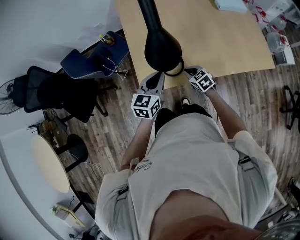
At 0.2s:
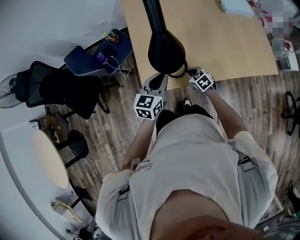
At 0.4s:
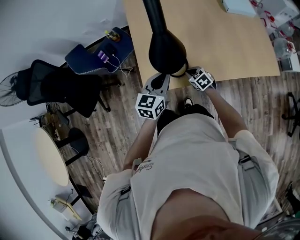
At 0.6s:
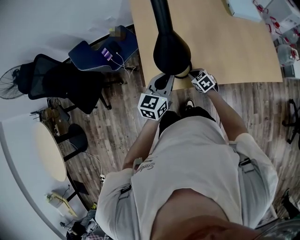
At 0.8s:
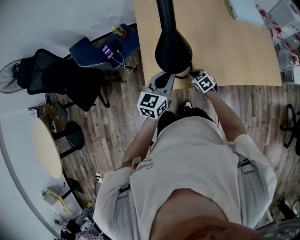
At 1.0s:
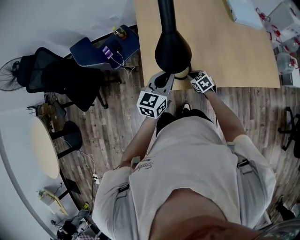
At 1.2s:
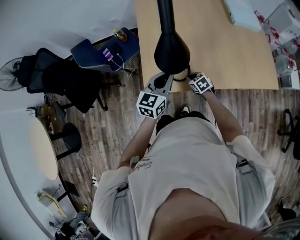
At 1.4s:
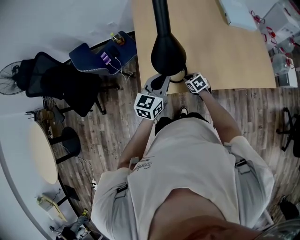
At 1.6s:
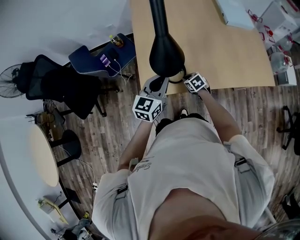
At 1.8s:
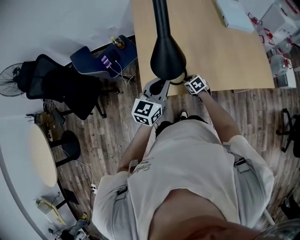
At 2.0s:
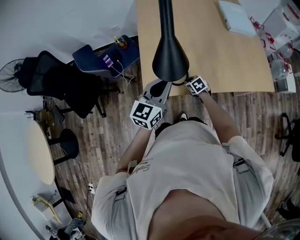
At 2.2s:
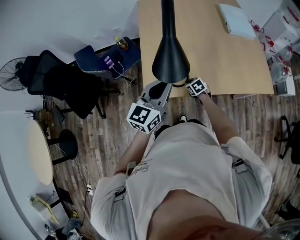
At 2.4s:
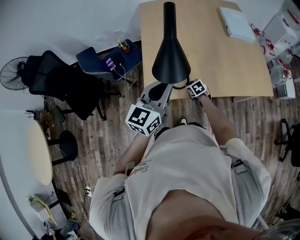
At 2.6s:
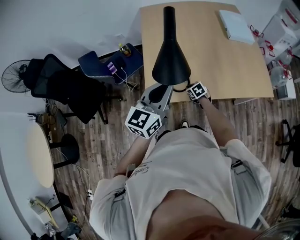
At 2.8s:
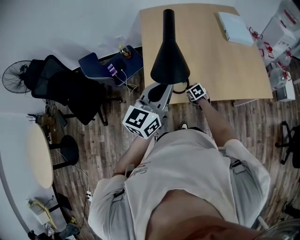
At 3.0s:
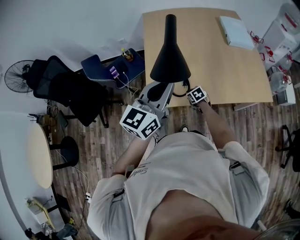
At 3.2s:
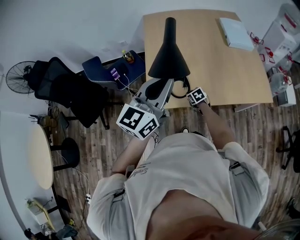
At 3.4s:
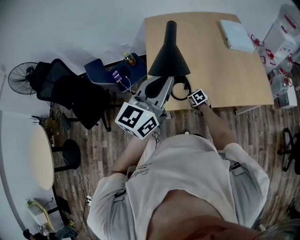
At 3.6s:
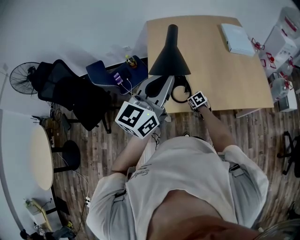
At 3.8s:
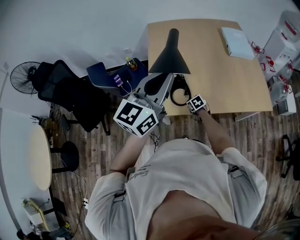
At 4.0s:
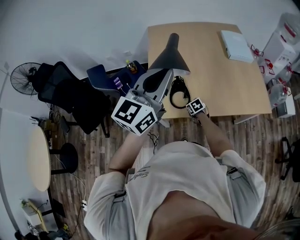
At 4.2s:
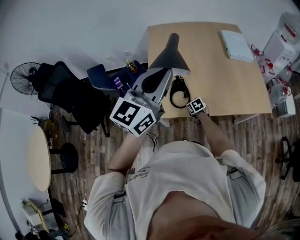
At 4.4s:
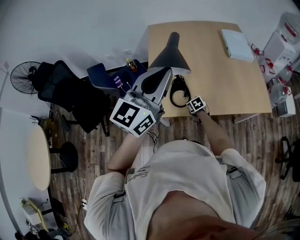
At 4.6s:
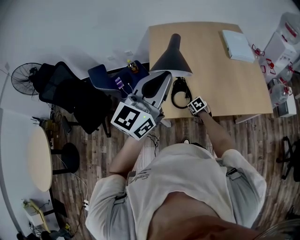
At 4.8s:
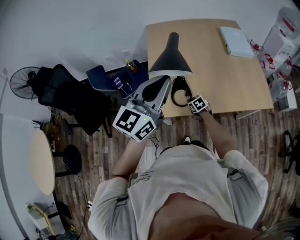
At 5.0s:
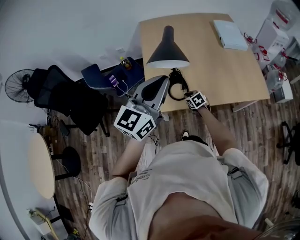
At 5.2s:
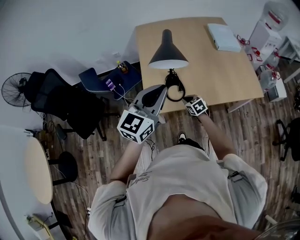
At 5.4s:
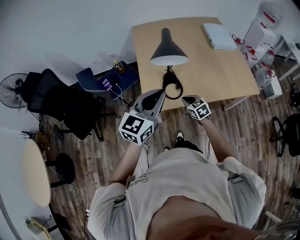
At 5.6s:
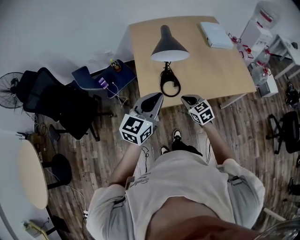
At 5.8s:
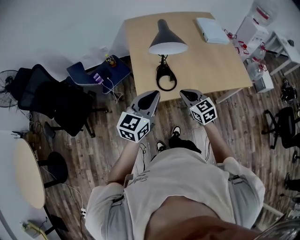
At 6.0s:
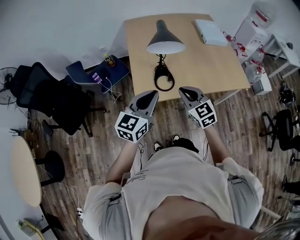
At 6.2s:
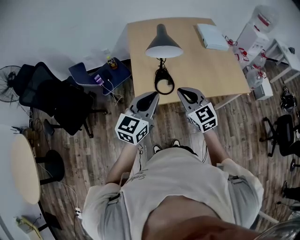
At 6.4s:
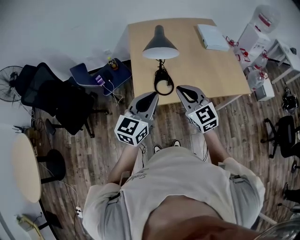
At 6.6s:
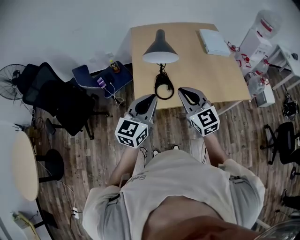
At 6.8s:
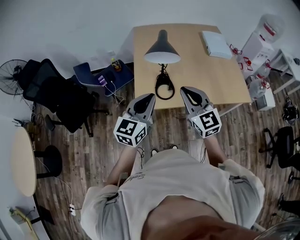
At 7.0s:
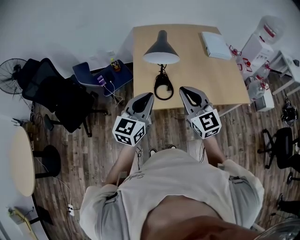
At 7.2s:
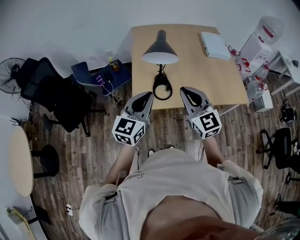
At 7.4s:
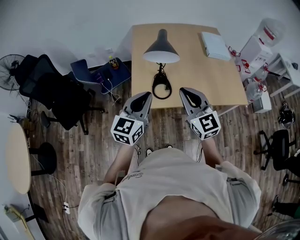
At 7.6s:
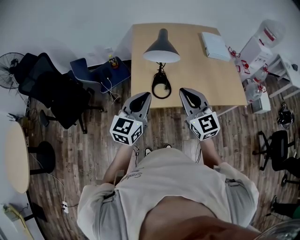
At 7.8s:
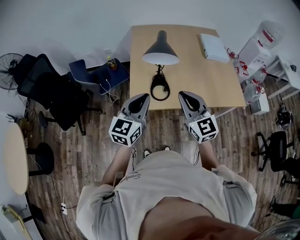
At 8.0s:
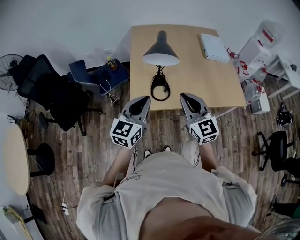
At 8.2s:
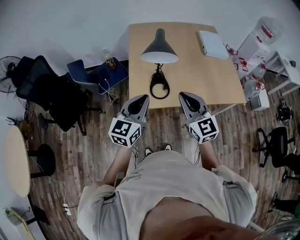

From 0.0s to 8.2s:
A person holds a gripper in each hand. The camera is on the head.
From 0.0s to 1.6s: The grippers make only small movements.
From 1.6s to 3.2s: The left gripper is displaced upward by roughly 20 cm.
From 3.2s to 5.0s: The right gripper is displaced upward by approximately 5 cm.
From 5.0s to 6.6s: The right gripper is displaced upward and backward by approximately 40 cm, and tips its fingers upward by about 40 degrees; the left gripper heads backward and downward, covering roughly 10 cm.
From 6.6s to 8.2s: There are only small adjustments of the grippers.

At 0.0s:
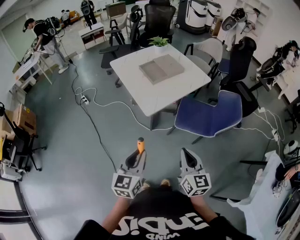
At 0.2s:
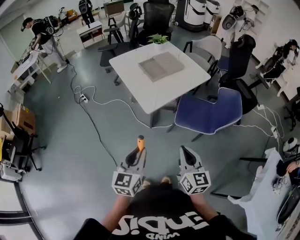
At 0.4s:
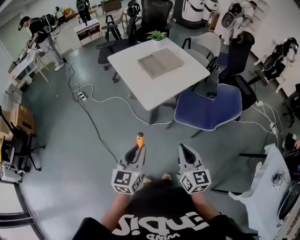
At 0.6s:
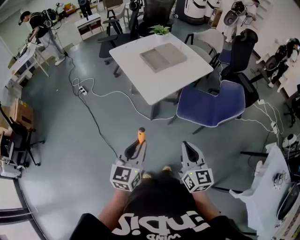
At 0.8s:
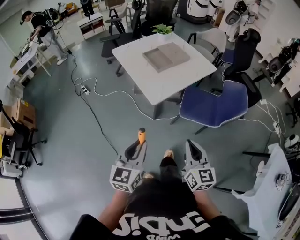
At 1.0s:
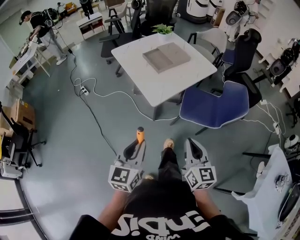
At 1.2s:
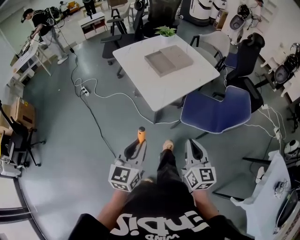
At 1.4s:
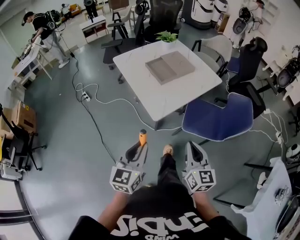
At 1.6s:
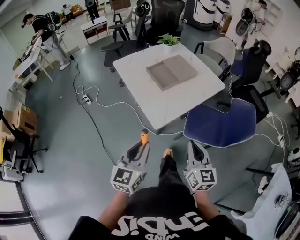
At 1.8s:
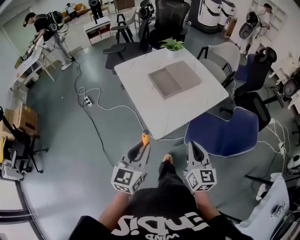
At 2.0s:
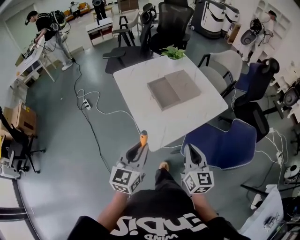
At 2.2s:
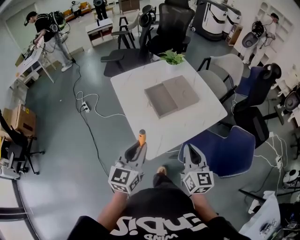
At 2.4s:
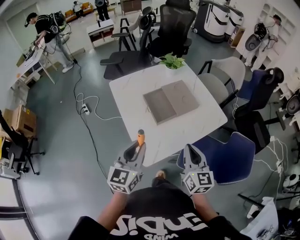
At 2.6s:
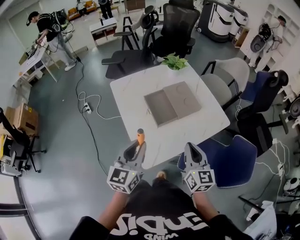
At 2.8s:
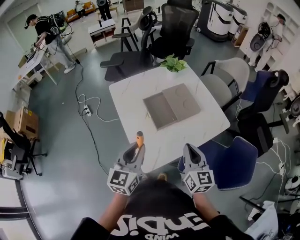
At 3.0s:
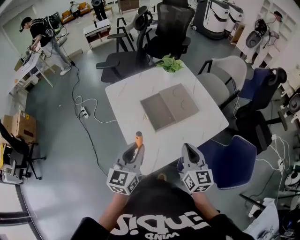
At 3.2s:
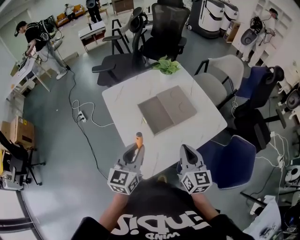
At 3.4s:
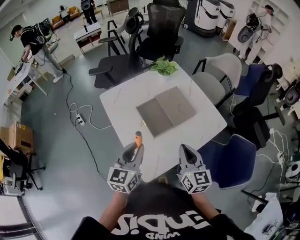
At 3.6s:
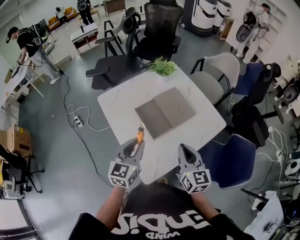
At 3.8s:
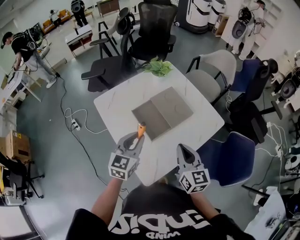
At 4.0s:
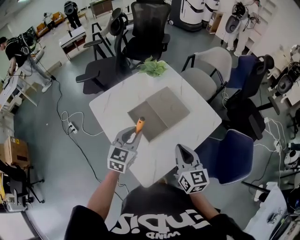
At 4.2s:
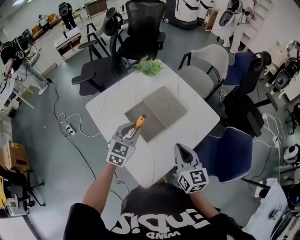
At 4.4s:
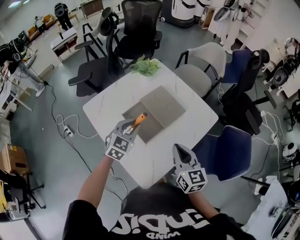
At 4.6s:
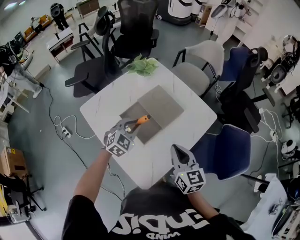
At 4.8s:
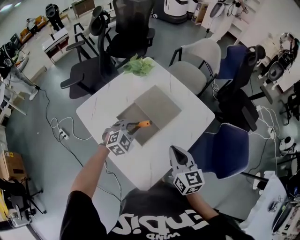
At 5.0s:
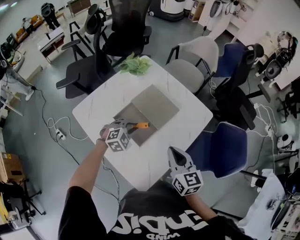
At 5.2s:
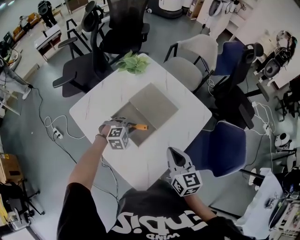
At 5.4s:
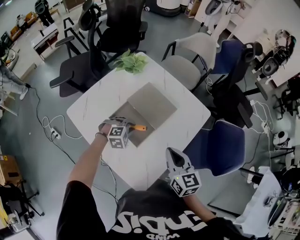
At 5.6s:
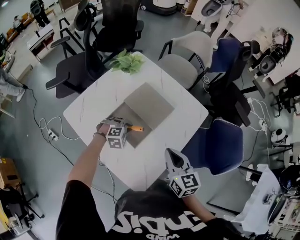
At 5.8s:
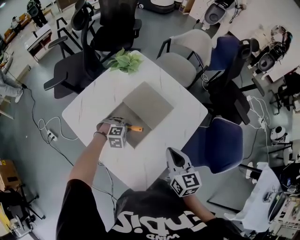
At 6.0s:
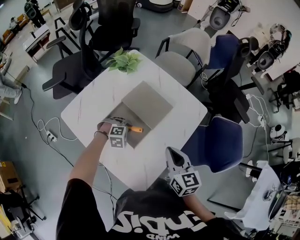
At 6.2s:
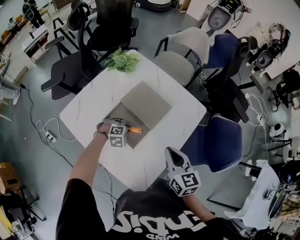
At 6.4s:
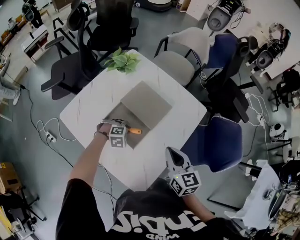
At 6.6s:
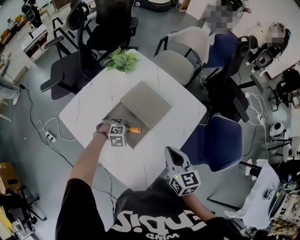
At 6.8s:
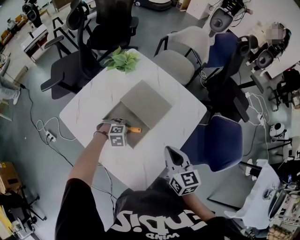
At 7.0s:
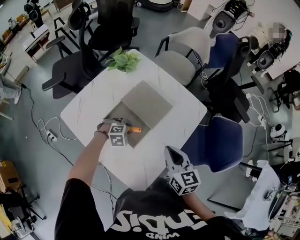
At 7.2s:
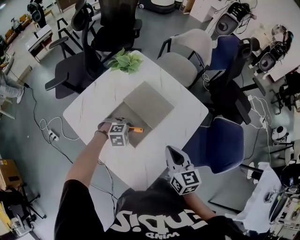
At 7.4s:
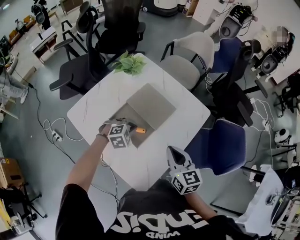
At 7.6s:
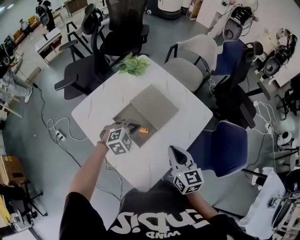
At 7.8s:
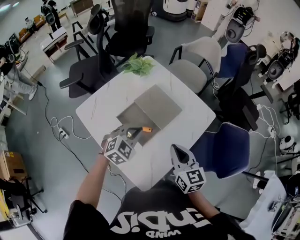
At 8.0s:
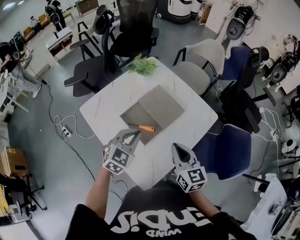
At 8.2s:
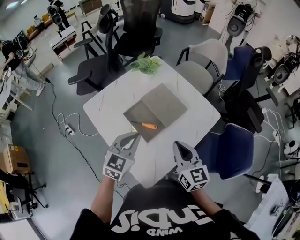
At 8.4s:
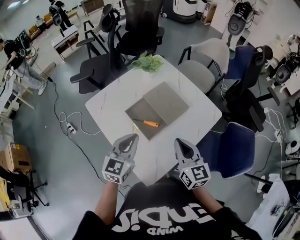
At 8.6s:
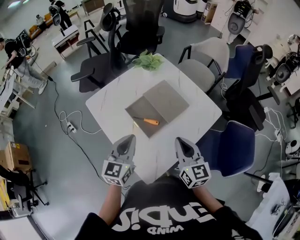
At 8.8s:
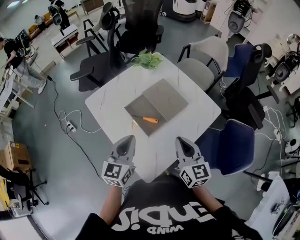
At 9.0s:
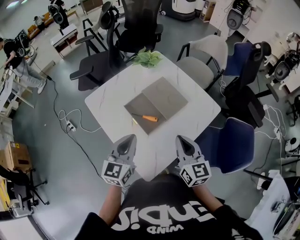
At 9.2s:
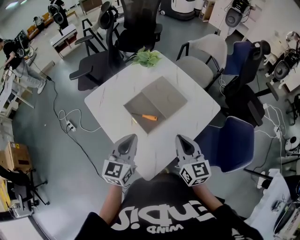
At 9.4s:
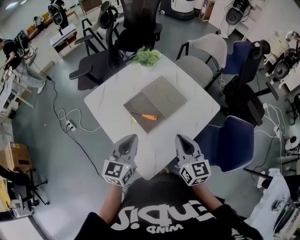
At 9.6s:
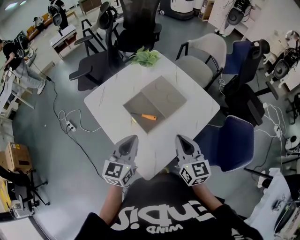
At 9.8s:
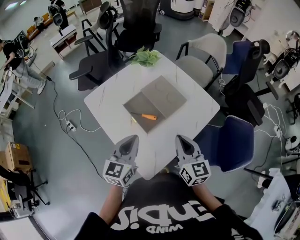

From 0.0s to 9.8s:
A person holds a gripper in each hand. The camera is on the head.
From 0.0s to 1.4s: The grippers both shift forward by about 10 cm.
From 1.4s to 2.8s: The grippers both shift forward by approximately 35 cm.
From 2.8s to 4.2s: The right gripper is displaced forward by roughly 5 cm. Meanwhile the left gripper moves forward, roughly 20 cm, and changes its angle by roughly 30 degrees.
From 4.2s to 5.6s: The left gripper travels downward by approximately 20 cm, and points its fingers roughly 40 degrees further downward.
From 5.6s to 7.0s: There are only small adjustments of the grippers.
From 7.0s to 8.4s: The right gripper is displaced upward by approximately 5 cm; the left gripper shifts some 25 cm upward and backward, tilts its fingers roughly 50 degrees upward, and closes.
From 8.4s to 9.8s: The grippers make only small movements.

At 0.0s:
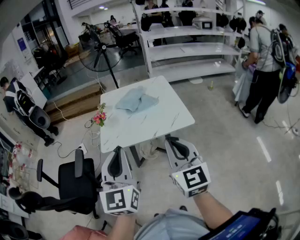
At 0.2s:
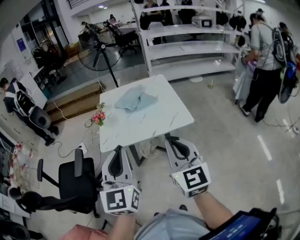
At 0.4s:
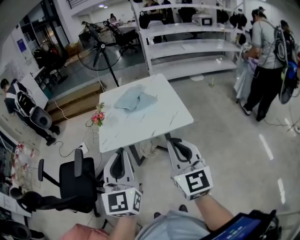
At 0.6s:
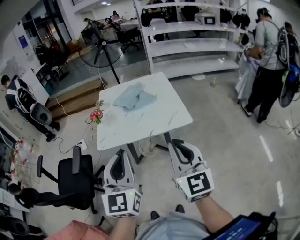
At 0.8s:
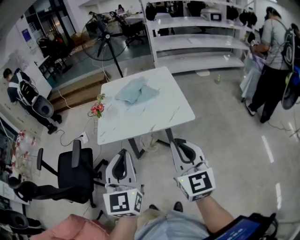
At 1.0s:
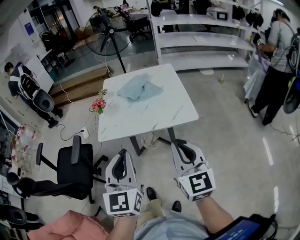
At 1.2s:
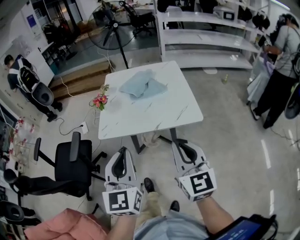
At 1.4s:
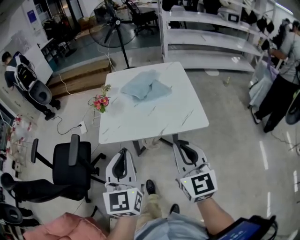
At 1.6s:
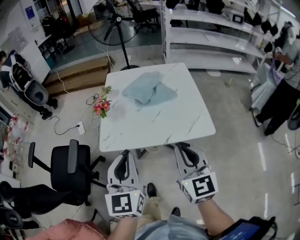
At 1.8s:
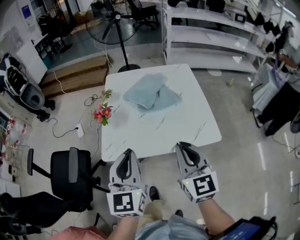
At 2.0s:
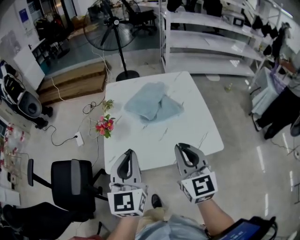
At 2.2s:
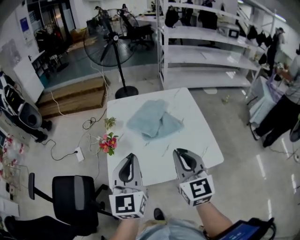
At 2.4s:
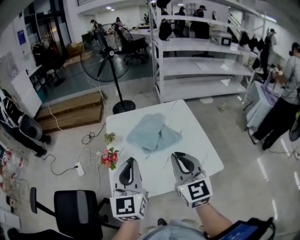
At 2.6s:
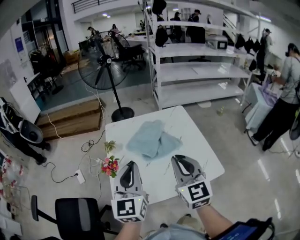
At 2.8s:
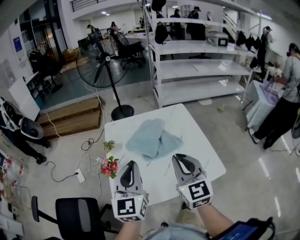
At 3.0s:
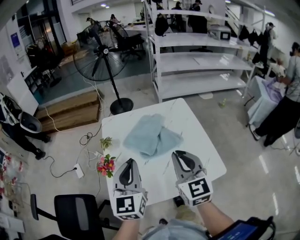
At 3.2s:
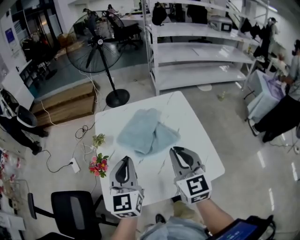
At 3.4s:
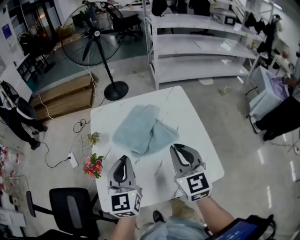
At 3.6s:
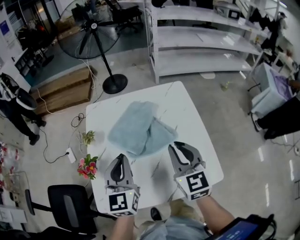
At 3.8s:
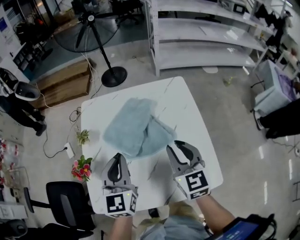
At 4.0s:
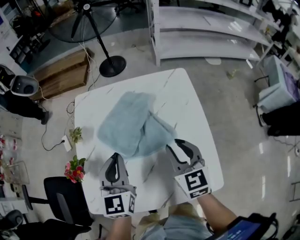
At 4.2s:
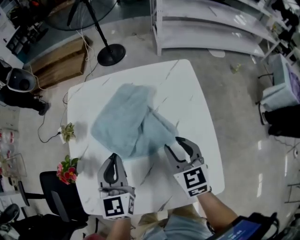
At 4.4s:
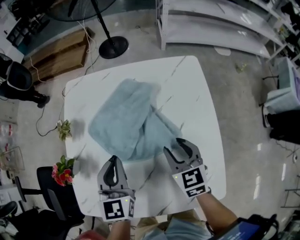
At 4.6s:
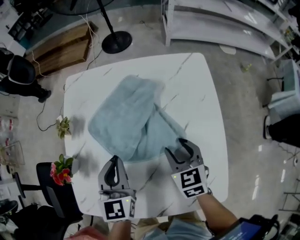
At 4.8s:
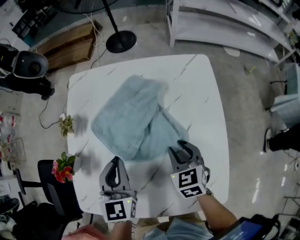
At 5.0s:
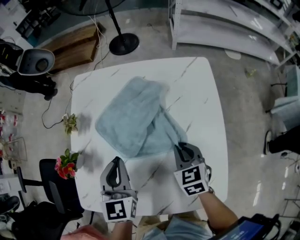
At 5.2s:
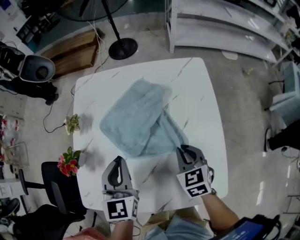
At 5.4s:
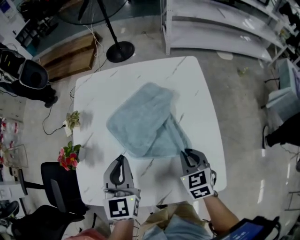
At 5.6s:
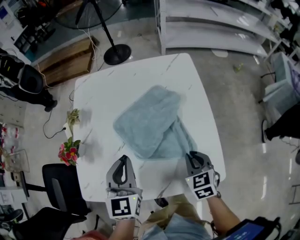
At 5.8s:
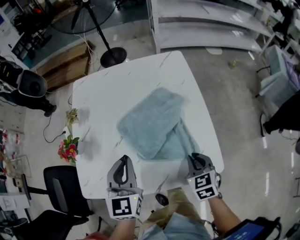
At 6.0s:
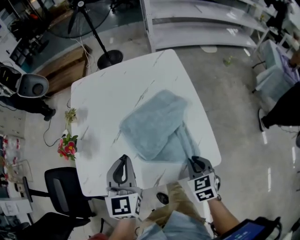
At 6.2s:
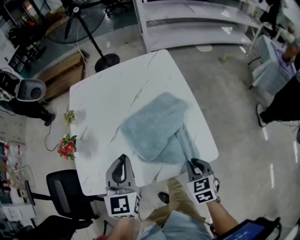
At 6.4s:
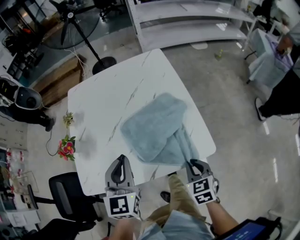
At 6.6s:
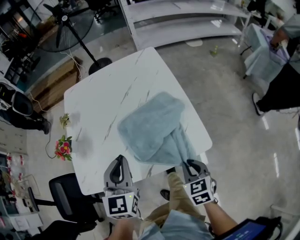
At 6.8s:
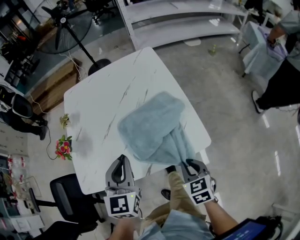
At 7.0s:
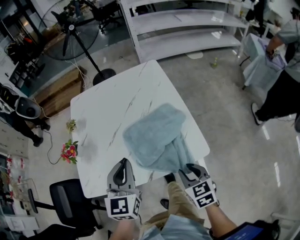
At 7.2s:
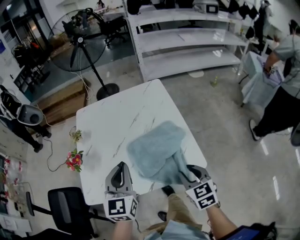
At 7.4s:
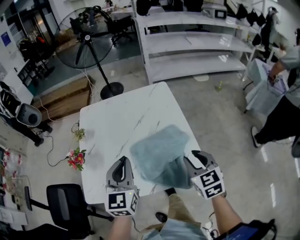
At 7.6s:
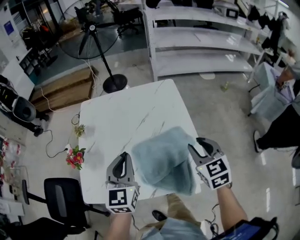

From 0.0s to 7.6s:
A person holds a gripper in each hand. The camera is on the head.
From 0.0s to 1.6s: The grippers both shift forward and downward by approximately 15 cm.
From 1.6s to 3.0s: Both grippers move forward, about 25 cm.
From 3.0s to 4.6s: The grippers both shift downward and forward by roughly 30 cm. The left gripper swivels about 30 degrees. The right gripper angles its fingers downward, by some 30 degrees, and opens.
From 4.6s to 6.0s: The left gripper heads backward, covering about 15 cm, while the right gripper heads backward, covering roughly 25 cm, and closes up.
From 6.0s to 7.6s: The left gripper moves upward, roughly 5 cm. Meanwhile the right gripper is displaced upward and forward by roughly 20 cm, and opens its fingers.
